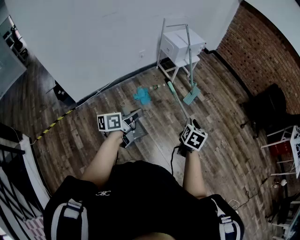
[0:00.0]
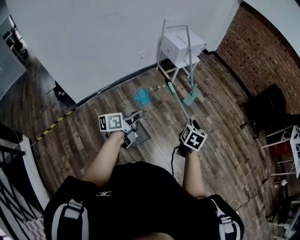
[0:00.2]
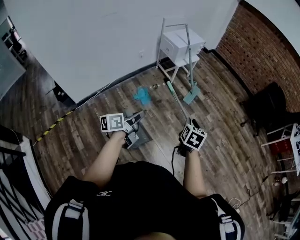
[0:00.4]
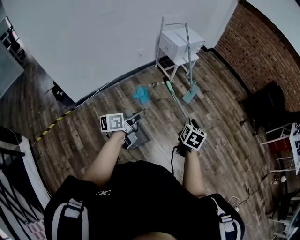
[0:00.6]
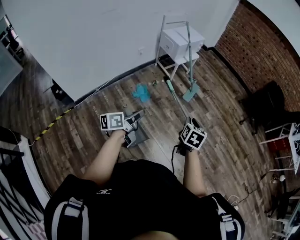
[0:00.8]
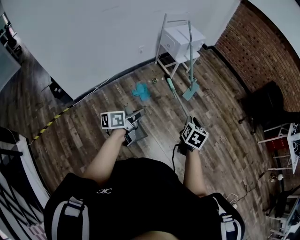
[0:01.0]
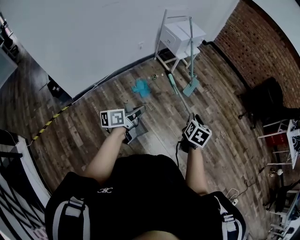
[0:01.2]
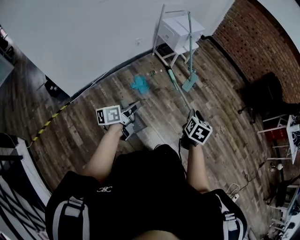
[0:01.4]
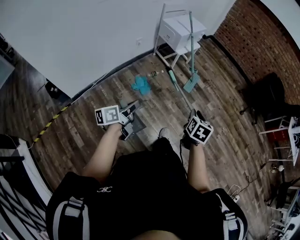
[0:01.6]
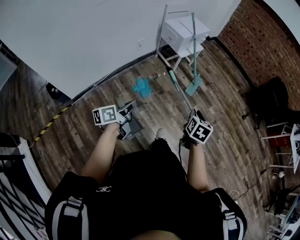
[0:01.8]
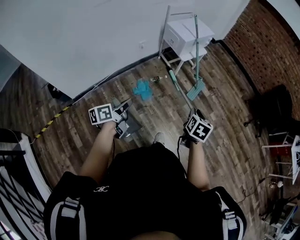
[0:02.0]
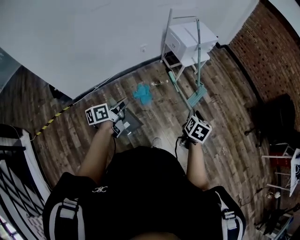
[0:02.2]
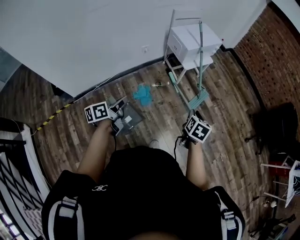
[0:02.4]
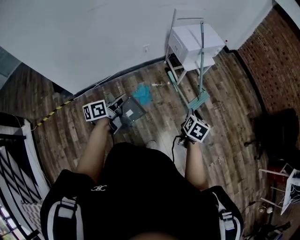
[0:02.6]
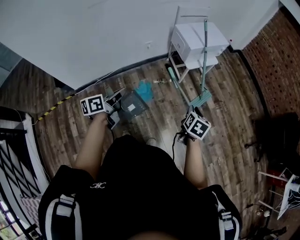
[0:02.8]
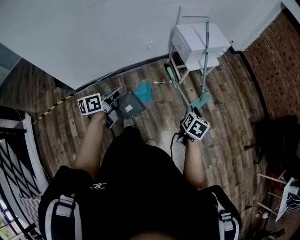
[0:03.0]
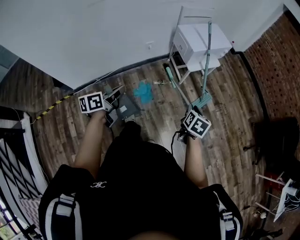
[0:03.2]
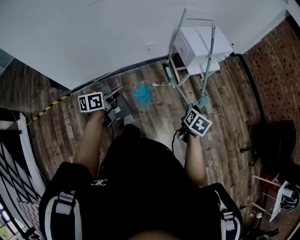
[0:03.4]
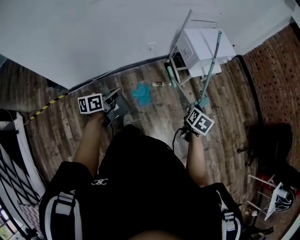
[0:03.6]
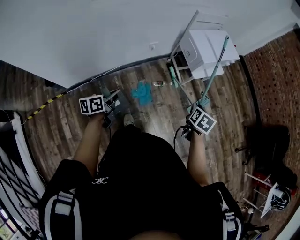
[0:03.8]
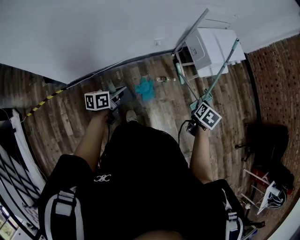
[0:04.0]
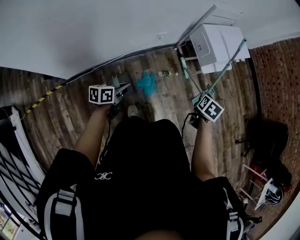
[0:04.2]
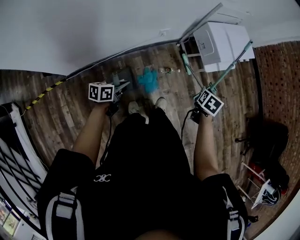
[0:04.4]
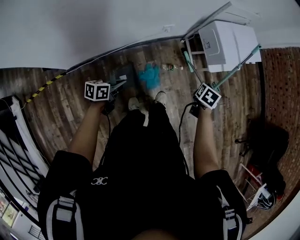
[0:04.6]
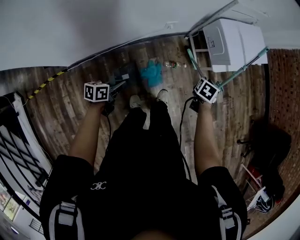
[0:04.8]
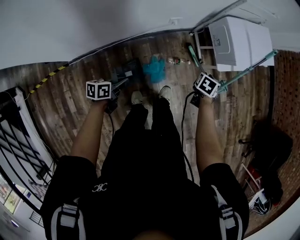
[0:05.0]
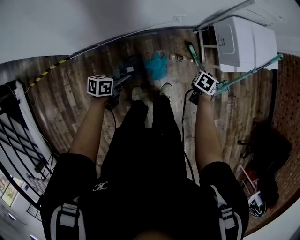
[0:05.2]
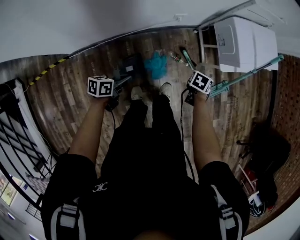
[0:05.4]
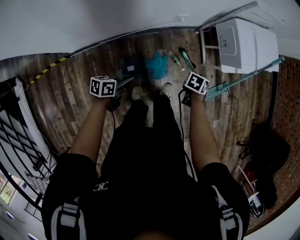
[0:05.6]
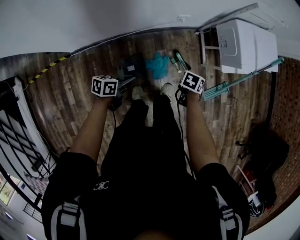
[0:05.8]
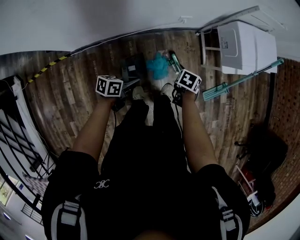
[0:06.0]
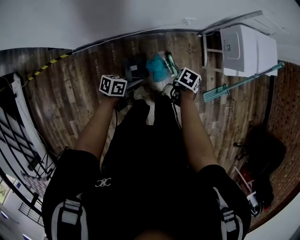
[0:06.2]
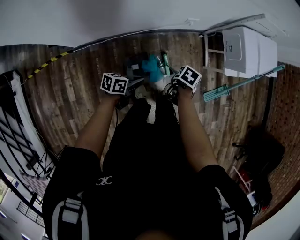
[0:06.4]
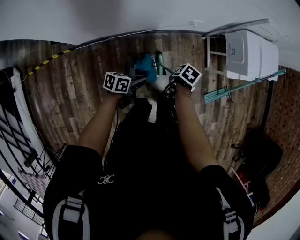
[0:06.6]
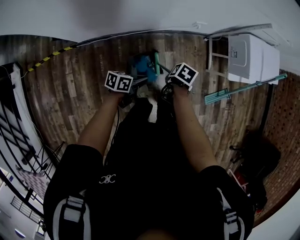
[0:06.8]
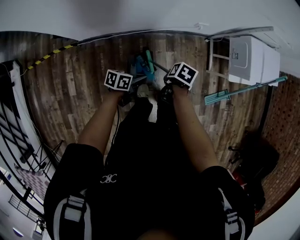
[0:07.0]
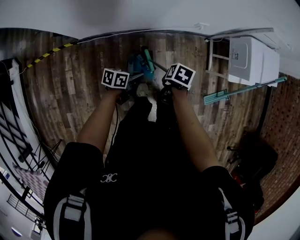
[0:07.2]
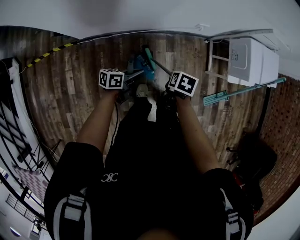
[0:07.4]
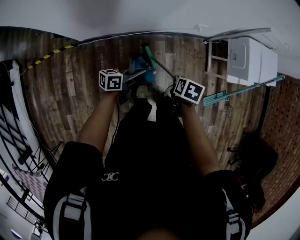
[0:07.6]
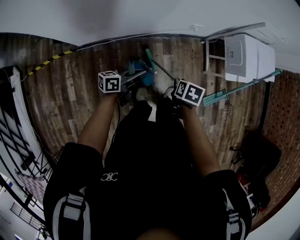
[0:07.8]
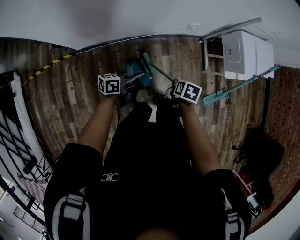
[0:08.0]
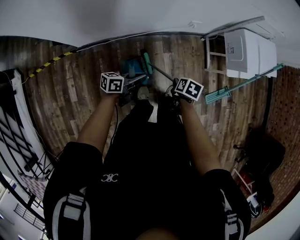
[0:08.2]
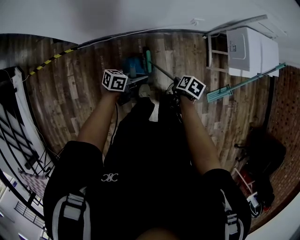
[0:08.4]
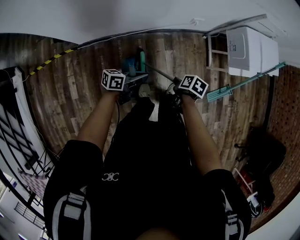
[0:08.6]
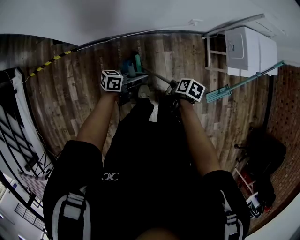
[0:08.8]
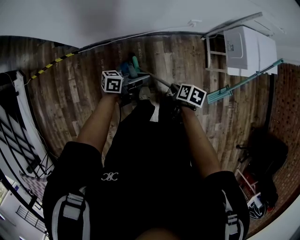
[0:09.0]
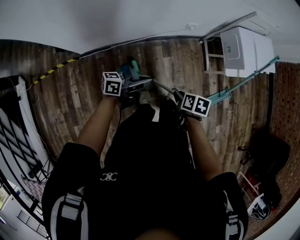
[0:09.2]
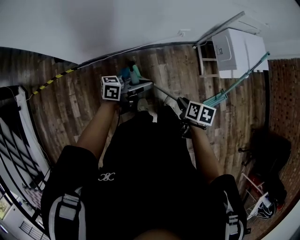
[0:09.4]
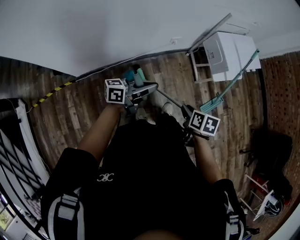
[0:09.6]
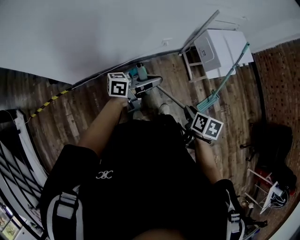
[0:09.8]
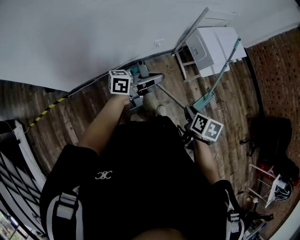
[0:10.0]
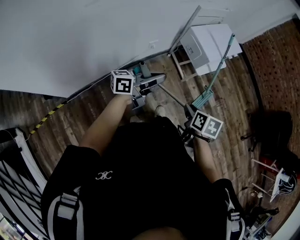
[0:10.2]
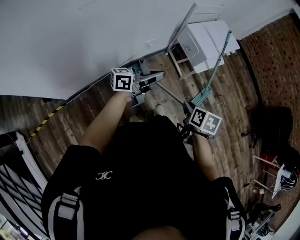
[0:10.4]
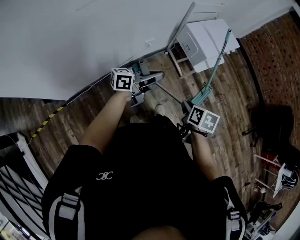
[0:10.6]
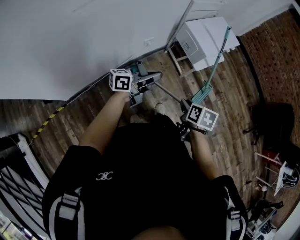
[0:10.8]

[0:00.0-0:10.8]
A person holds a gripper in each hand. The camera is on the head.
0:00.0 to 0:01.6: The right gripper is displaced to the left by about 5 cm. Meanwhile the left gripper moves to the left and downward, approximately 10 cm.
0:01.6 to 0:03.0: The grippers both shift forward by some 30 cm. The left gripper swivels roughly 20 degrees.
0:03.0 to 0:04.6: The left gripper travels to the left, downward and forward by about 35 cm, and turns by roughly 20 degrees, while the right gripper is displaced to the left, forward and downward by roughly 35 cm, and swivels approximately 20 degrees.
0:04.6 to 0:06.2: The right gripper shifts by approximately 20 cm, and changes its angle by roughly 20 degrees. Meanwhile the left gripper travels downward by roughly 5 cm.
0:06.2 to 0:07.8: The right gripper ends up some 15 cm from where it was; the left gripper goes approximately 5 cm upward, and turns by about 30 degrees.
0:07.8 to 0:09.2: The right gripper is displaced backward by some 5 cm, and goes downward and returns, approximately 5 cm each way. Meanwhile the left gripper shifts roughly 10 cm to the right and upward.
0:09.2 to 0:10.8: The left gripper shifts by some 25 cm, while the right gripper changes place by roughly 20 cm, and swivels some 30 degrees.

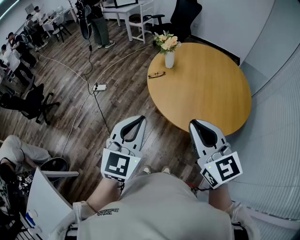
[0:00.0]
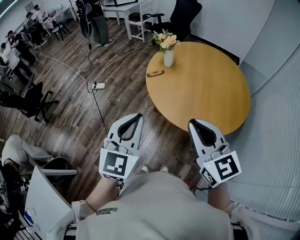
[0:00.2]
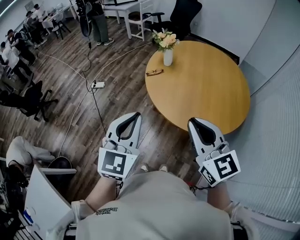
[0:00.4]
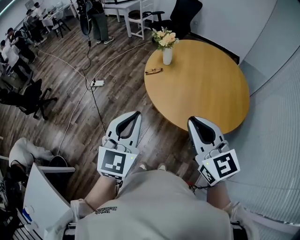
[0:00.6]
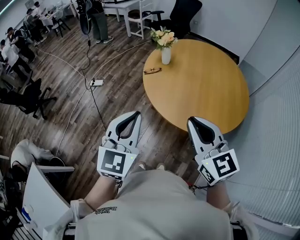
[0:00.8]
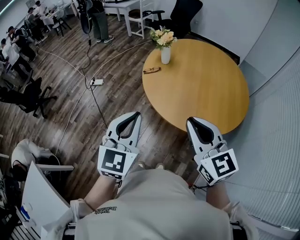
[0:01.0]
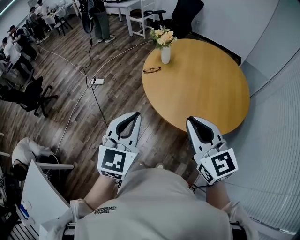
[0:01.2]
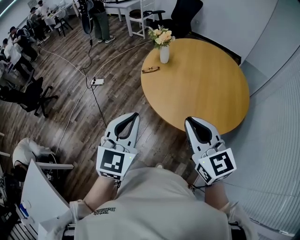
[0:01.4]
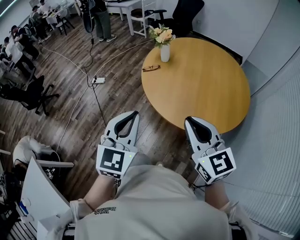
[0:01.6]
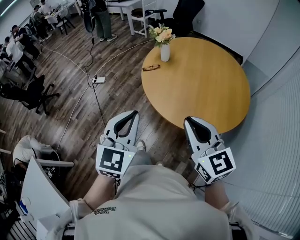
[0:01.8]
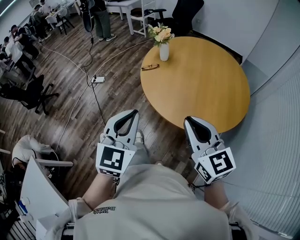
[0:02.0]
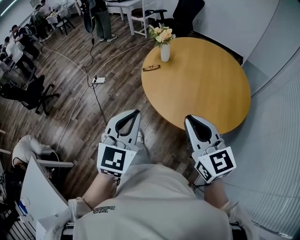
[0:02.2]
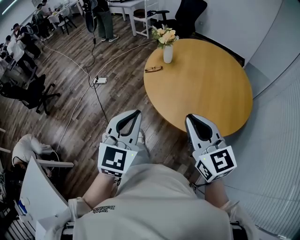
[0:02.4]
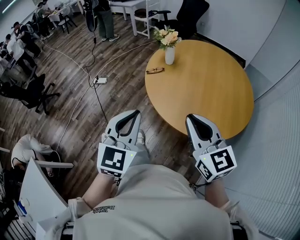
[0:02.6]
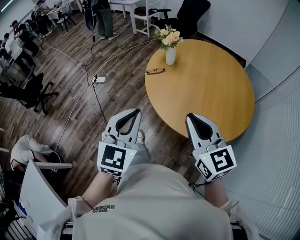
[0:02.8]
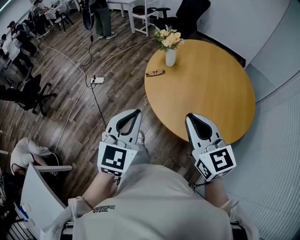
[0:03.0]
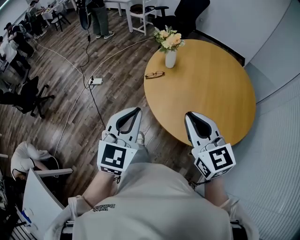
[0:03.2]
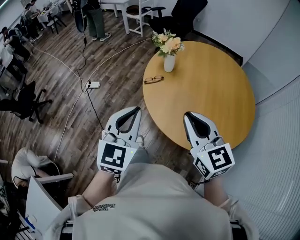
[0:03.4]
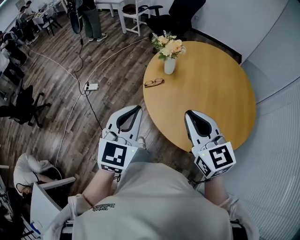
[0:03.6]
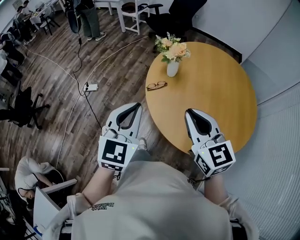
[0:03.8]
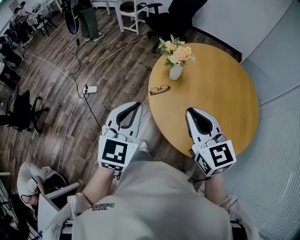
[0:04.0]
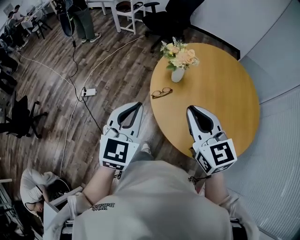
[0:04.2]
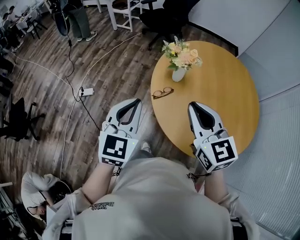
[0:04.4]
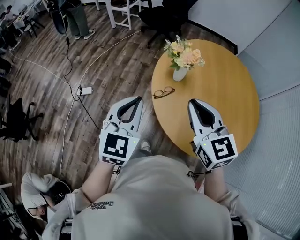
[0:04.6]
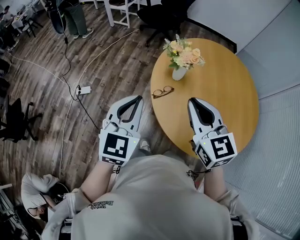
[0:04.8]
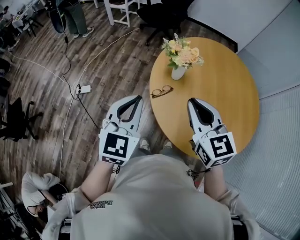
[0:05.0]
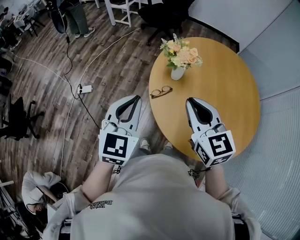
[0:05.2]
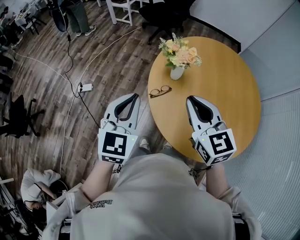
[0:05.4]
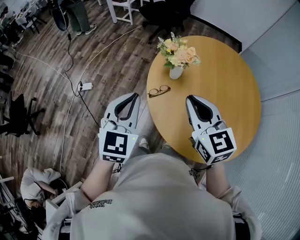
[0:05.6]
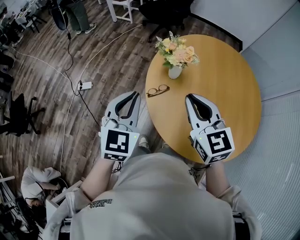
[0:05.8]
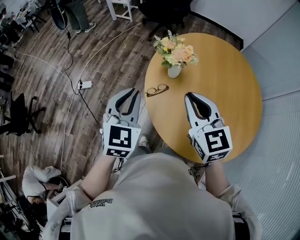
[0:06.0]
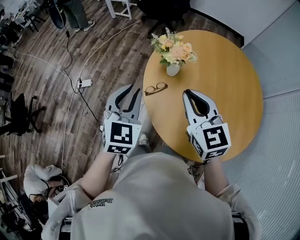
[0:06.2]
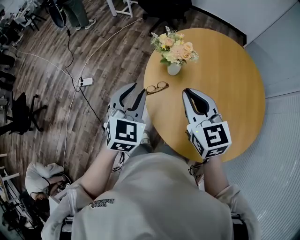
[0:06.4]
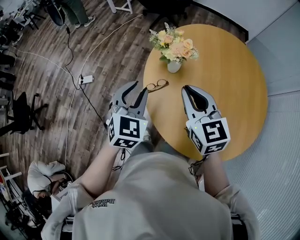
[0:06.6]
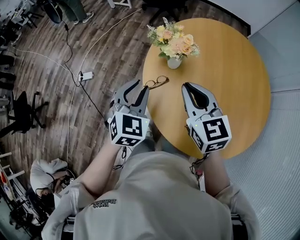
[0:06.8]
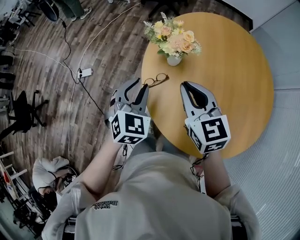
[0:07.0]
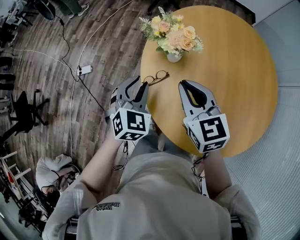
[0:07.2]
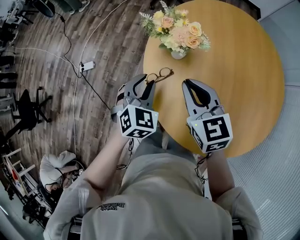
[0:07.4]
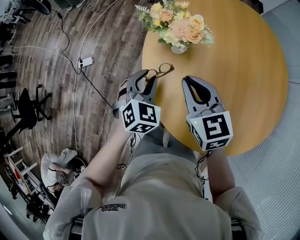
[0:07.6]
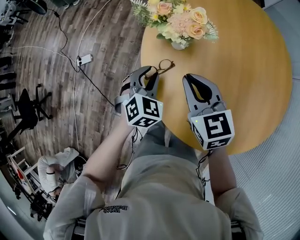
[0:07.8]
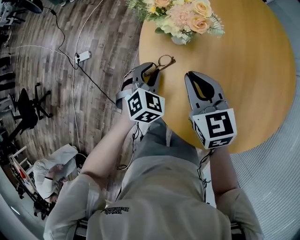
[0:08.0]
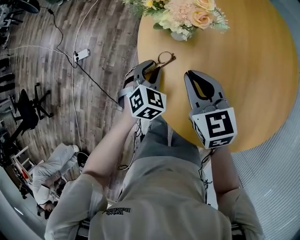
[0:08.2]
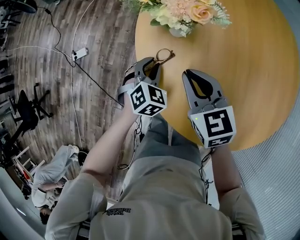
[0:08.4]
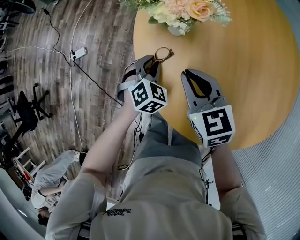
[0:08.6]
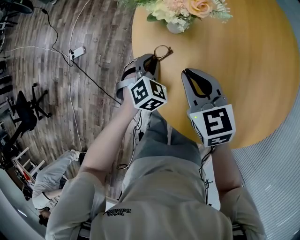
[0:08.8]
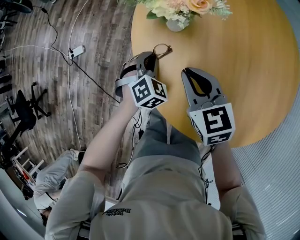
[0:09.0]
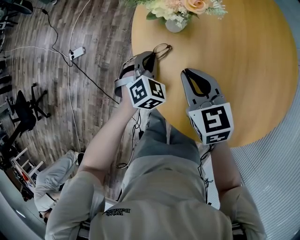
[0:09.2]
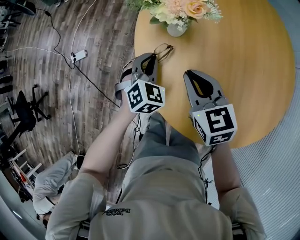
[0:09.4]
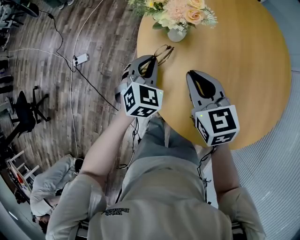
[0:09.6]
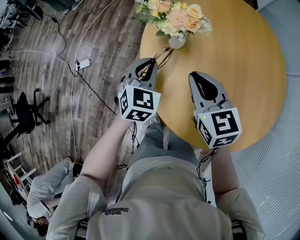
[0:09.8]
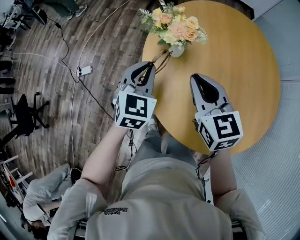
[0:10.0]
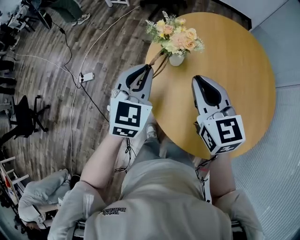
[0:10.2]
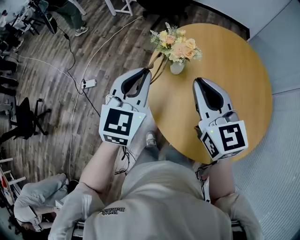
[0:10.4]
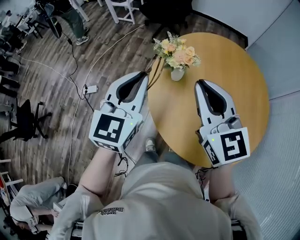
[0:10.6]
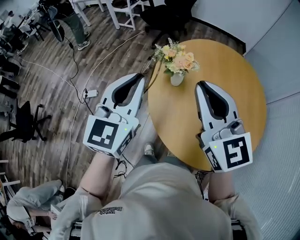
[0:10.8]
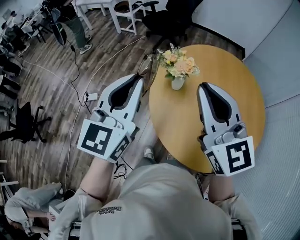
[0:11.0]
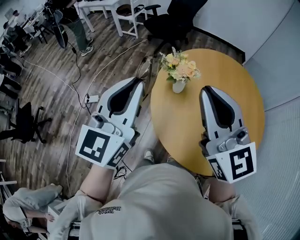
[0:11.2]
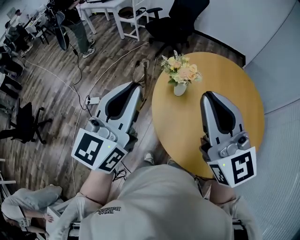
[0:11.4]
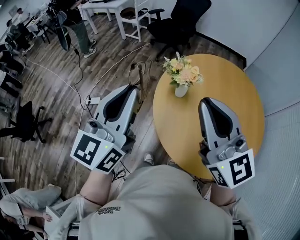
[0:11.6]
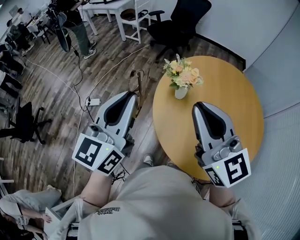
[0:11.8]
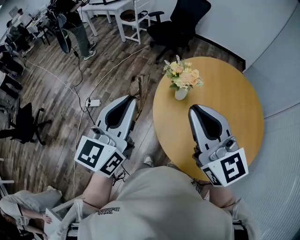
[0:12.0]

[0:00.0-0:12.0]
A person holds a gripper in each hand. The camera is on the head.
0:00.0 to 0:01.6: The right gripper goes approximately 5 cm to the right.
0:01.6 to 0:03.0: The two grippers go roughly 10 cm forward.
0:03.0 to 0:04.4: The grippers both shift forward and to the left by roughly 30 cm.
0:04.4 to 0:06.0: Both grippers travel together forward, approximately 5 cm.
0:06.0 to 0:07.6: The left gripper is displaced downward by about 20 cm, swivels roughly 30 degrees, and opens up, while the right gripper moves downward and forward, approximately 15 cm.
0:07.6 to 0:09.0: The grippers both shift downward by approximately 10 cm.
0:09.0 to 0:10.4: The grippers both shift upward by approximately 30 cm. The right gripper changes its angle by roughly 30 degrees; the left gripper points its fingers approximately 40 degrees further upward.
0:10.4 to 0:12.0: The left gripper shifts roughly 15 cm upward, to the left and backward, and changes its angle by about 30 degrees; the right gripper shifts some 15 cm upward, backward and to the left.

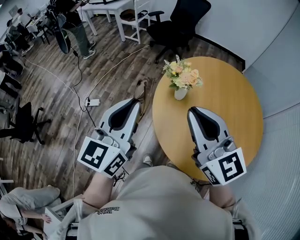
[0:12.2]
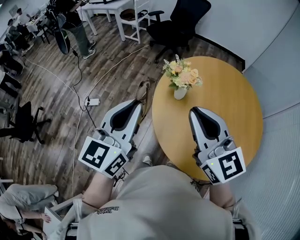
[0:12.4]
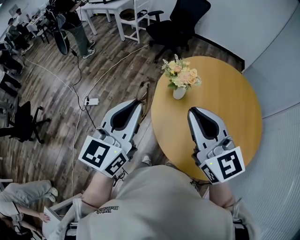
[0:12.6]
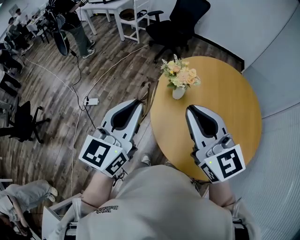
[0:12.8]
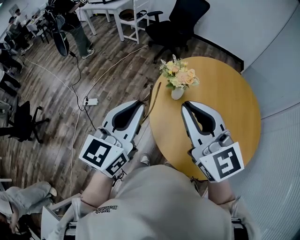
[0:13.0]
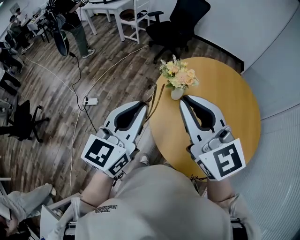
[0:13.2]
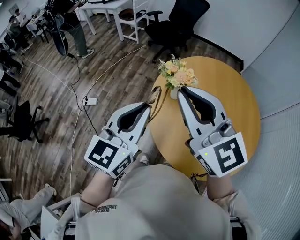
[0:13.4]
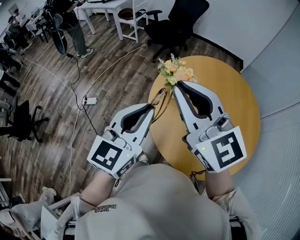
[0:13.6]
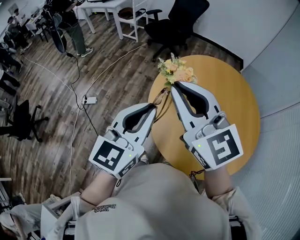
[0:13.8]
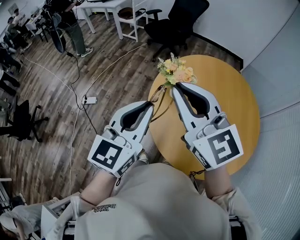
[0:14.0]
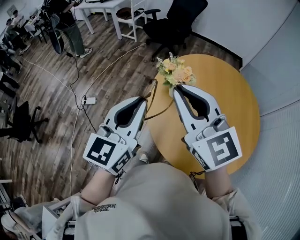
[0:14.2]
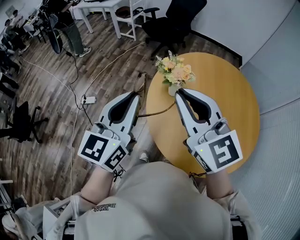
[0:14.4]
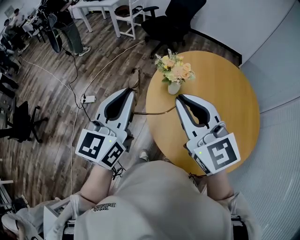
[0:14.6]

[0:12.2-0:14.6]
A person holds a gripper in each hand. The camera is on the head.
0:12.2 to 0:13.4: The left gripper travels to the right by some 5 cm. Meanwhile the right gripper ends up roughly 5 cm from where it was.
0:13.4 to 0:14.6: The right gripper moves some 5 cm.
